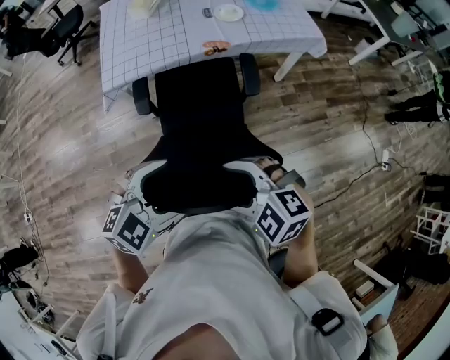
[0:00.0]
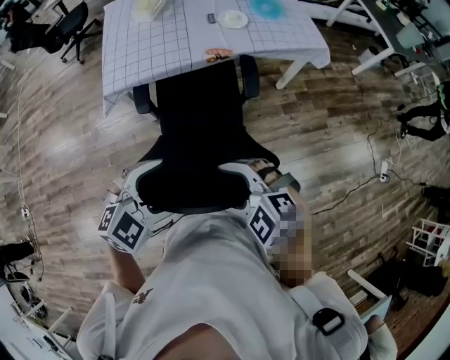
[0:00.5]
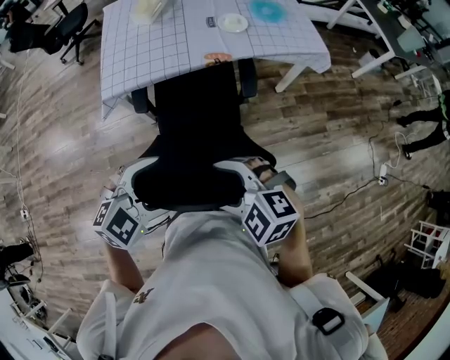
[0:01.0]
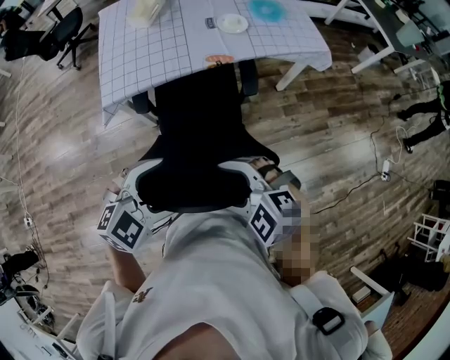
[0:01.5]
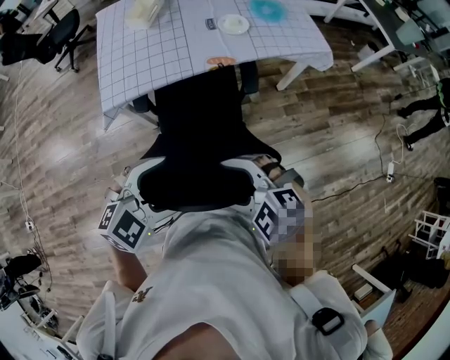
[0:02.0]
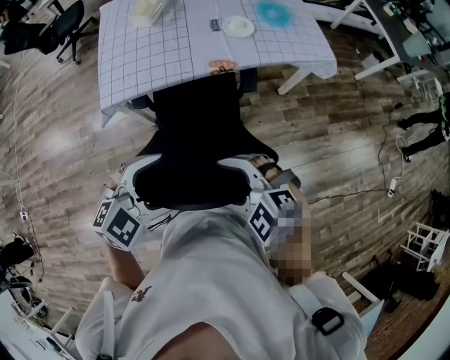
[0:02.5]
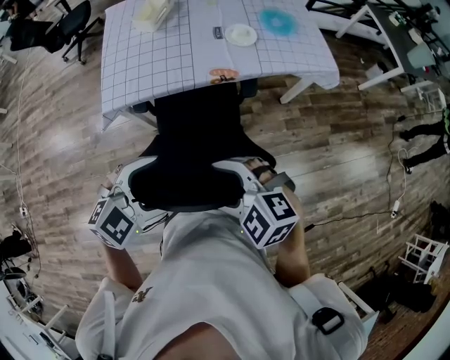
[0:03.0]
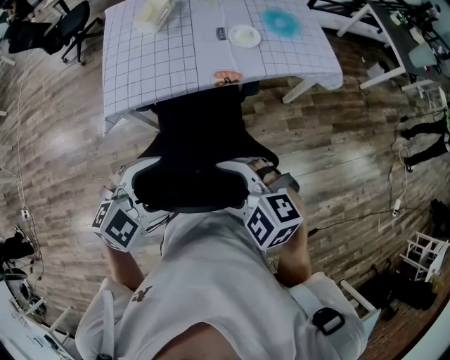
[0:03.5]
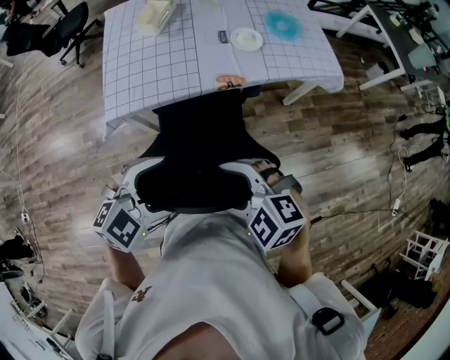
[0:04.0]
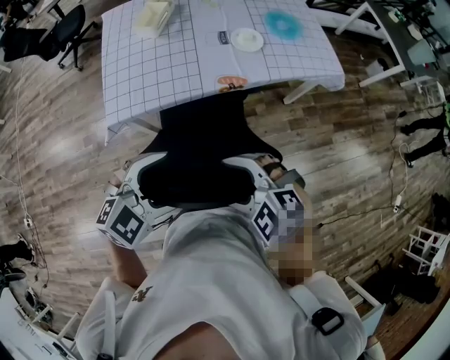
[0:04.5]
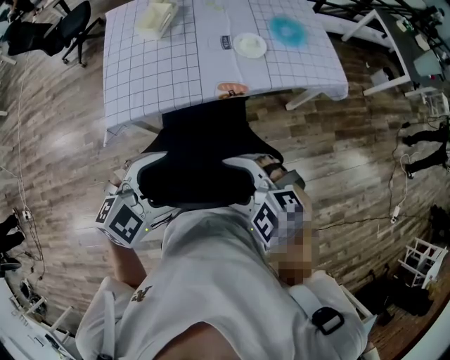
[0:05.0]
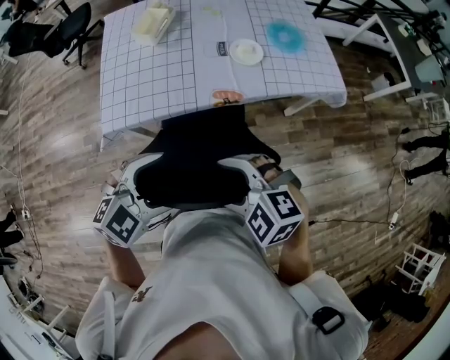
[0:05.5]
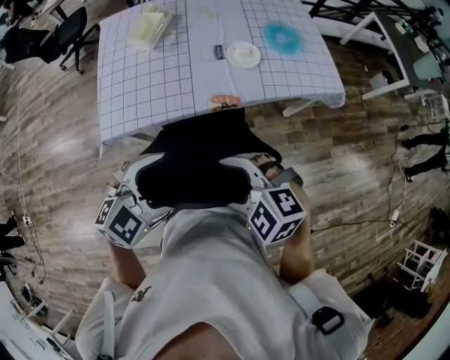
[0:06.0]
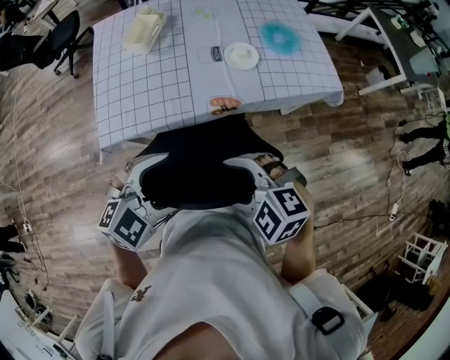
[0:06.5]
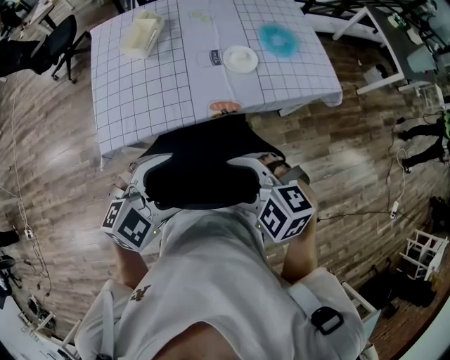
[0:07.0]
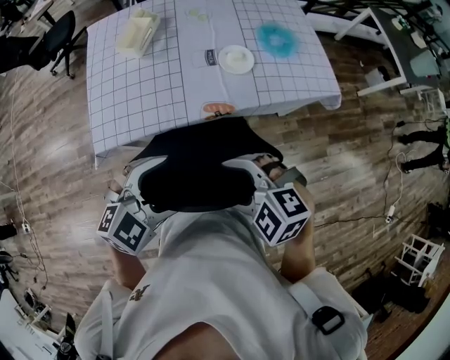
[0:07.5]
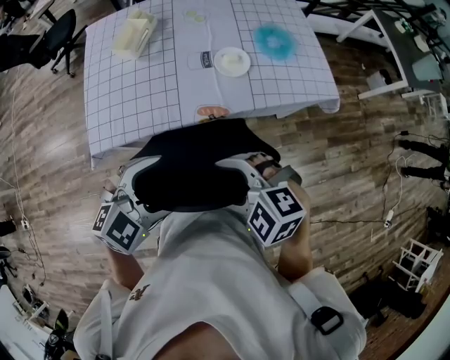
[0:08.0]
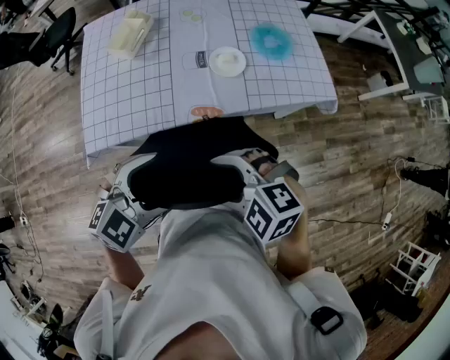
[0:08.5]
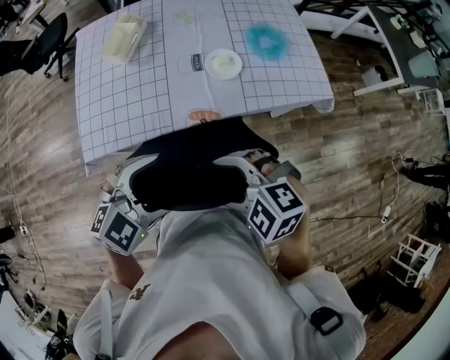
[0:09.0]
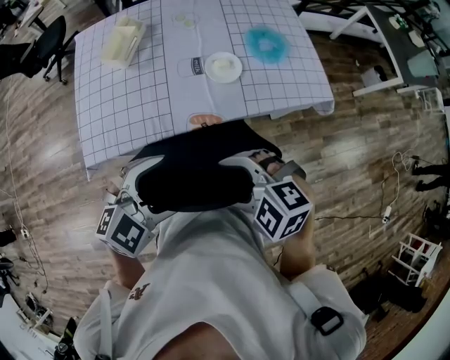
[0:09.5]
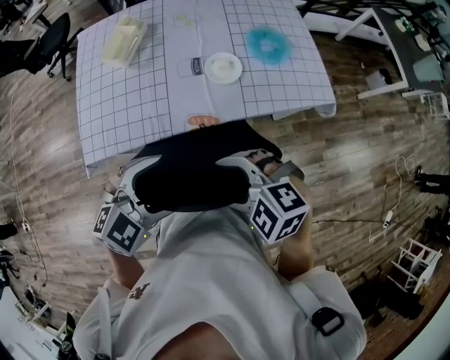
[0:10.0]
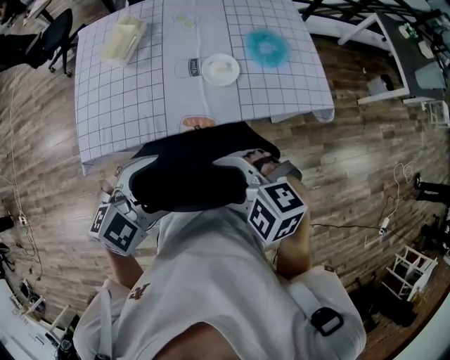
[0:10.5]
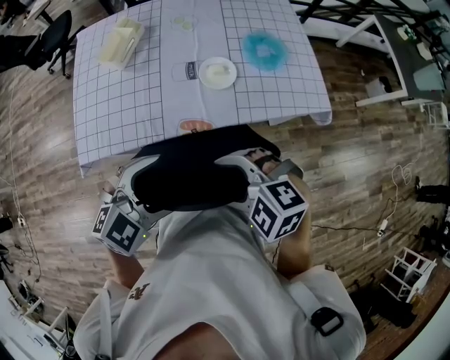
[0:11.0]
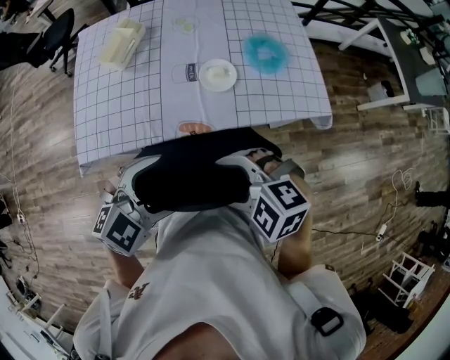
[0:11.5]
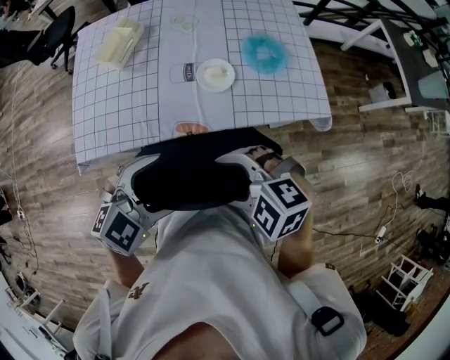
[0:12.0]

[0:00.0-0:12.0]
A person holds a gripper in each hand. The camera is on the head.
0:00.0 to 0:02.0: The right gripper shifts by some 10 cm; the left gripper moves roughly 10 cm.
0:02.0 to 0:04.0: The left gripper changes place by some 10 cm; the right gripper ends up roughly 10 cm from where it was.
0:04.0 to 0:06.0: The right gripper ends up roughly 10 cm from where it was. The left gripper changes place by roughly 10 cm.
0:06.0 to 0:08.0: The left gripper moves roughly 10 cm. Meanwhile the right gripper shifts by roughly 5 cm.
0:08.0 to 0:10.0: The right gripper moves some 5 cm; the left gripper changes place by about 5 cm.
0:10.0 to 0:12.0: The left gripper shifts by about 5 cm. Meanwhile the right gripper changes place by approximately 5 cm.

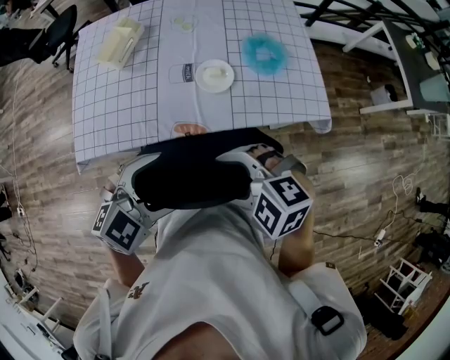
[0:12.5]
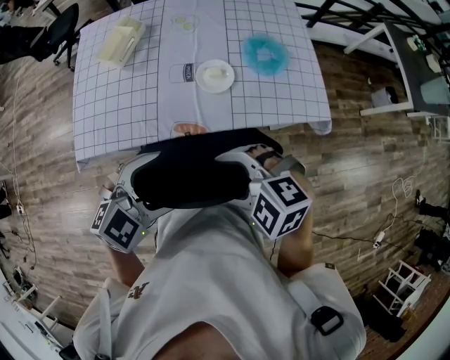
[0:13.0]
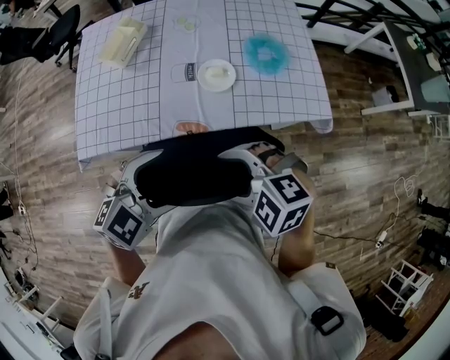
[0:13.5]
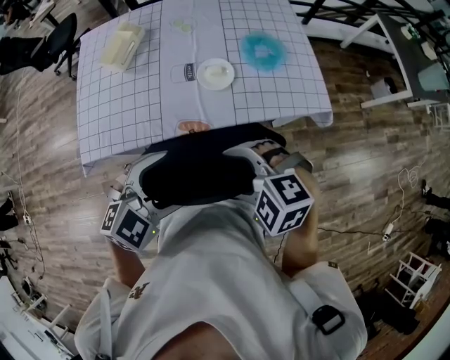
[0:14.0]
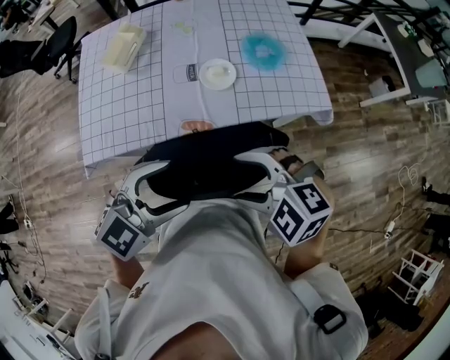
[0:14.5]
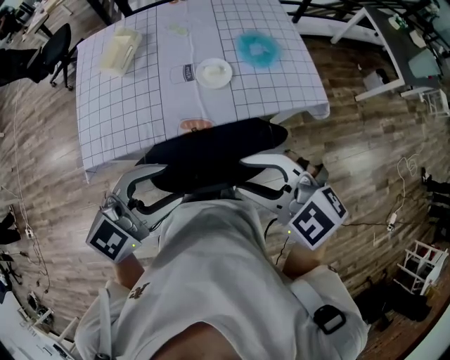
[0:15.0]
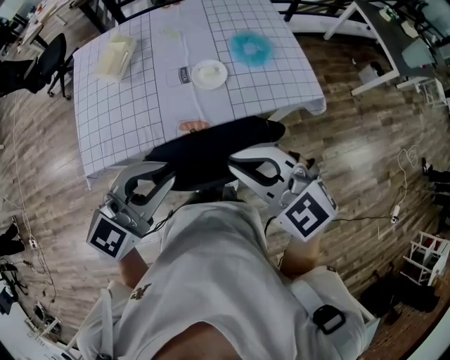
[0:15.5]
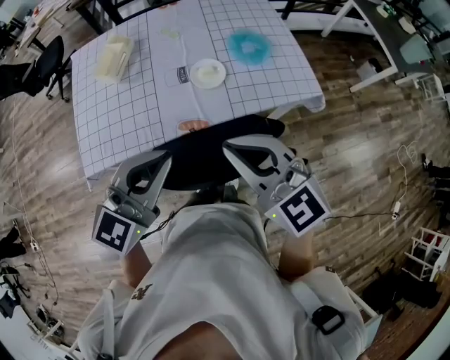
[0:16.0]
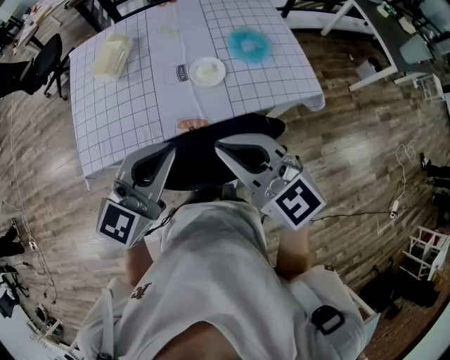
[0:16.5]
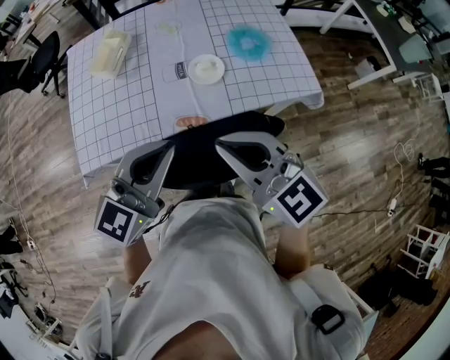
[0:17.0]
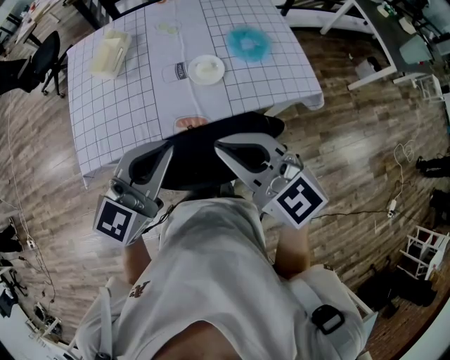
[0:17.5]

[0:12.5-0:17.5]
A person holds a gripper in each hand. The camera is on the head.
0:12.5 to 0:15.0: The two grippers go some 10 cm upward. The left gripper rotates approximately 20 degrees, and closes up, while the right gripper rotates some 30 degrees, and closes.
0:15.0 to 0:17.5: The left gripper heads forward, covering some 5 cm, swivels roughly 20 degrees, and closes up; the right gripper changes place by approximately 5 cm, changes its angle by some 30 degrees, and closes up.

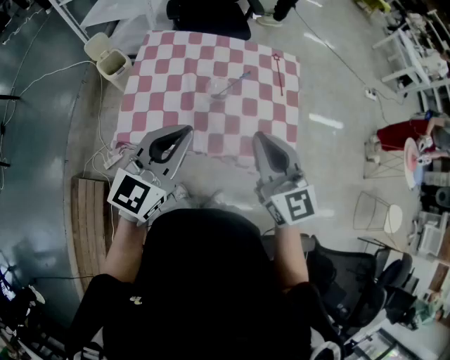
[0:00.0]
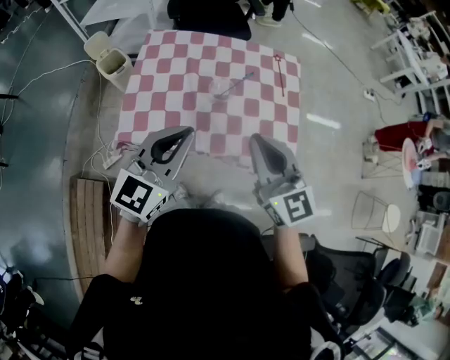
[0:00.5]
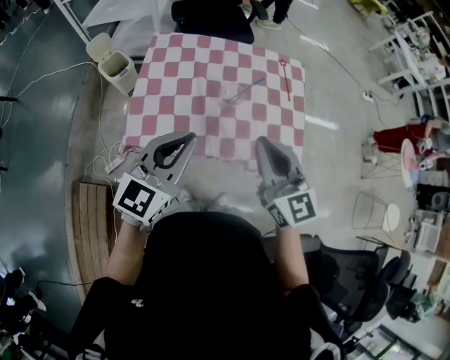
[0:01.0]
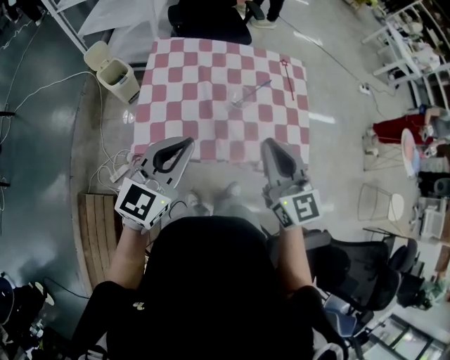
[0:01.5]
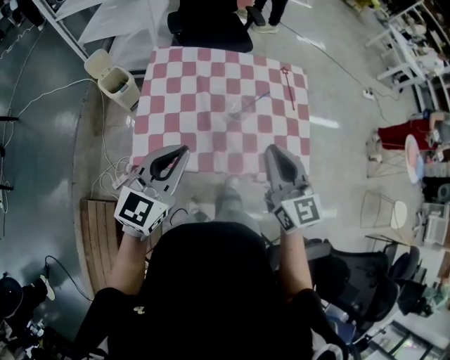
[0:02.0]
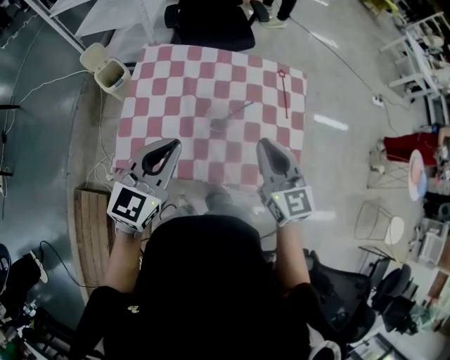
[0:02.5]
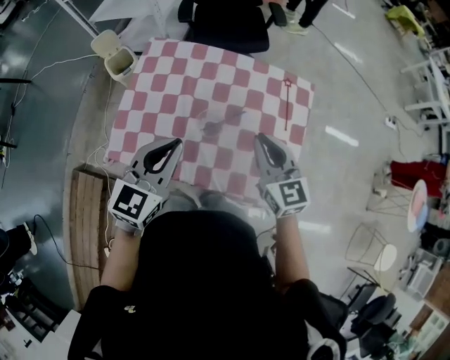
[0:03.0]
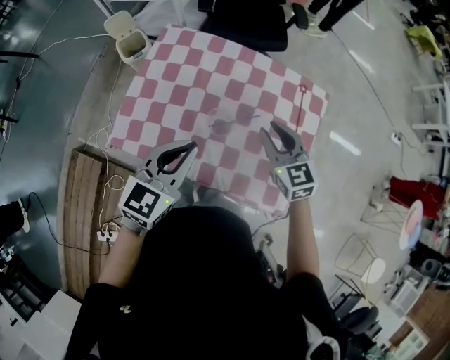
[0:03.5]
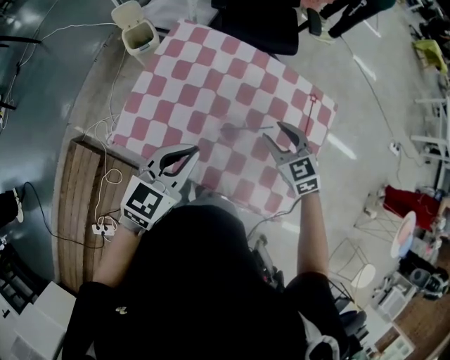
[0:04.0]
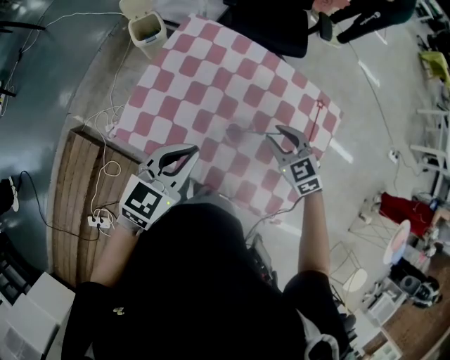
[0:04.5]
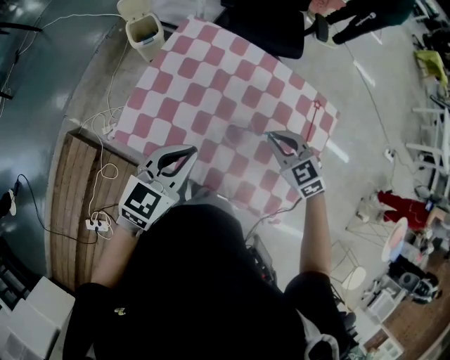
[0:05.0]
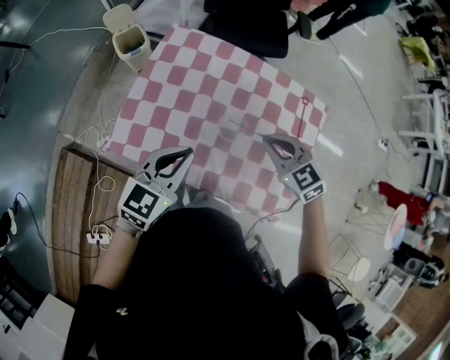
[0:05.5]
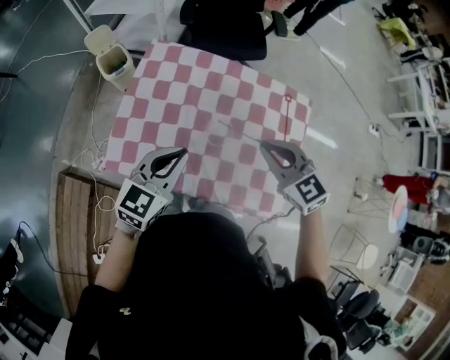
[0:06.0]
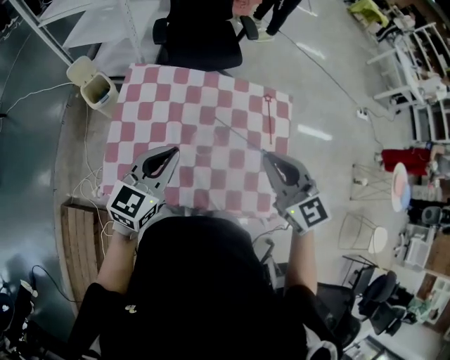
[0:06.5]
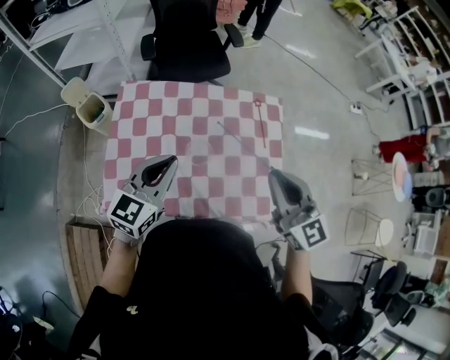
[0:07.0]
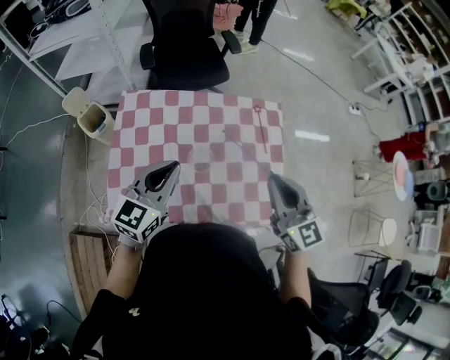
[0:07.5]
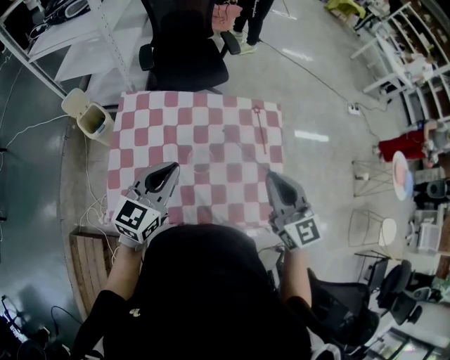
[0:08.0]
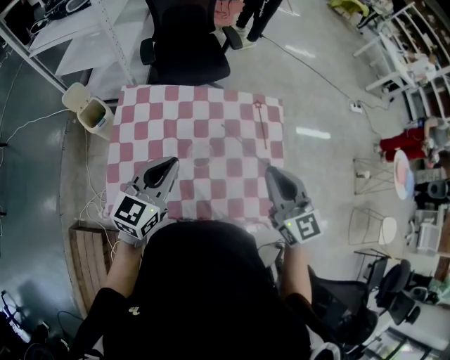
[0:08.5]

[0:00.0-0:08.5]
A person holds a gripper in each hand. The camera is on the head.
0:00.0 to 0:02.0: The right gripper changes place by approximately 5 cm. Meanwhile the left gripper moves to the left, about 10 cm.
0:02.0 to 0:04.0: The right gripper shifts about 25 cm forward and downward, tilts its fingers roughly 30 degrees downward, and opens up; the left gripper is displaced to the right, forward and downward by approximately 15 cm, and rotates roughly 20 degrees.
0:04.0 to 0:06.5: The right gripper shifts roughly 20 cm upward, swivels roughly 30 degrees, and closes up, while the left gripper heads forward, covering about 5 cm.
0:06.5 to 0:08.5: The grippers move only a little.

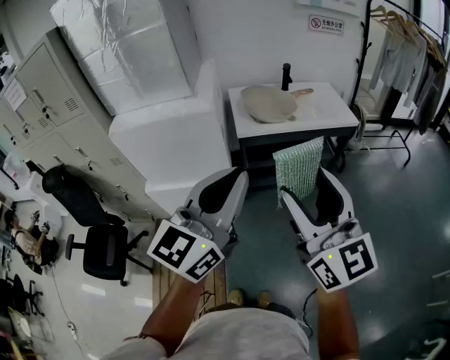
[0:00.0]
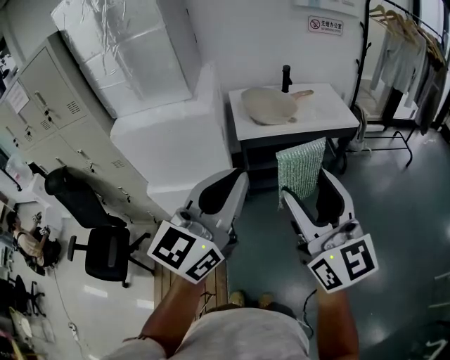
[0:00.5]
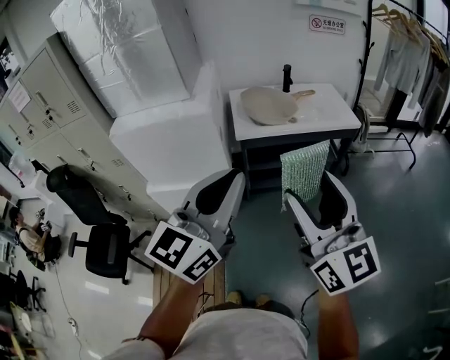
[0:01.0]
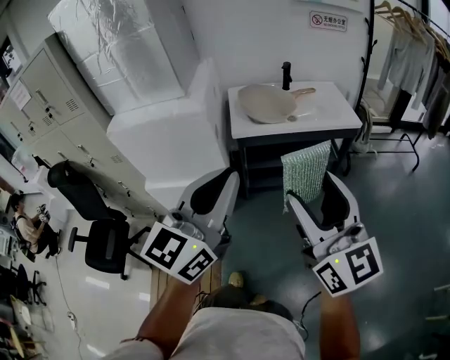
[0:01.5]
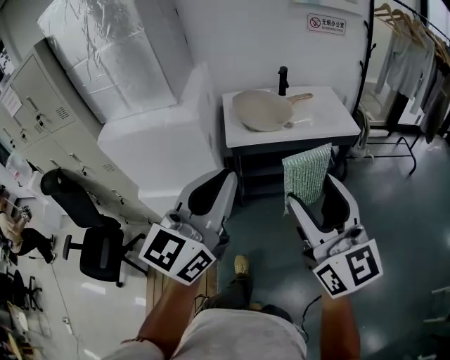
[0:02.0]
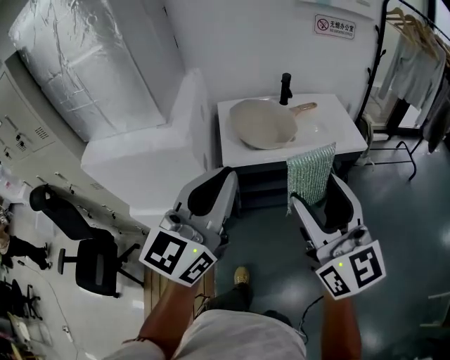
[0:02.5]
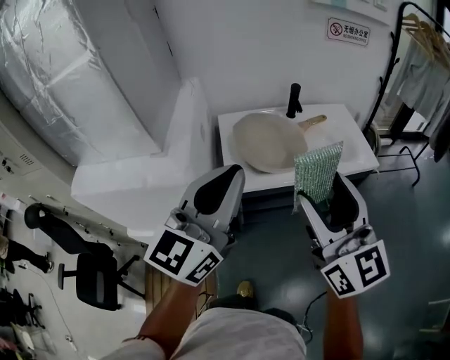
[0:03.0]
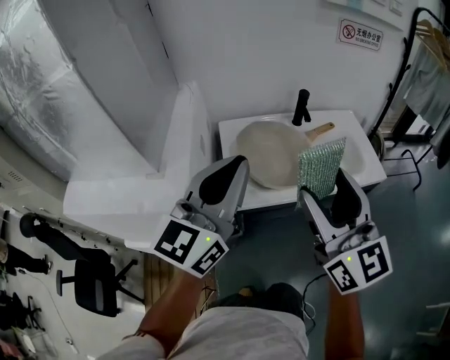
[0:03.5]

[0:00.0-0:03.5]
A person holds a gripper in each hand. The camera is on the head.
0:00.0 to 0:02.0: The left gripper shifts some 10 cm forward and to the right. The right gripper moves to the right and forward, some 10 cm.
0:02.0 to 0:03.5: Both grippers travel together forward, approximately 35 cm.
